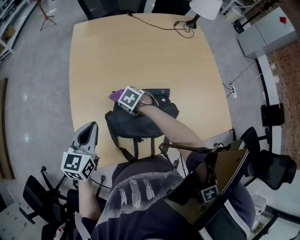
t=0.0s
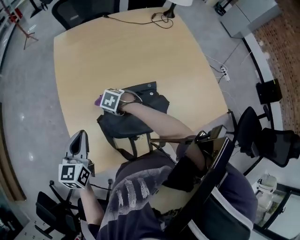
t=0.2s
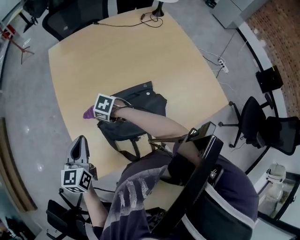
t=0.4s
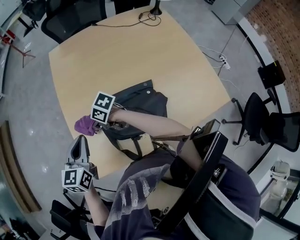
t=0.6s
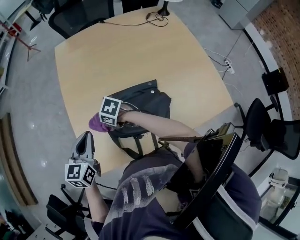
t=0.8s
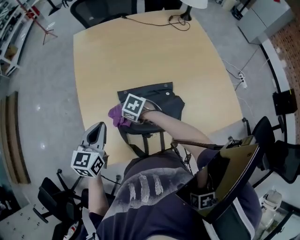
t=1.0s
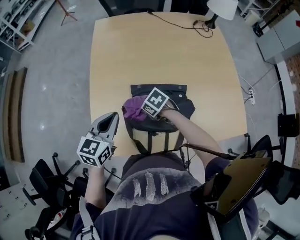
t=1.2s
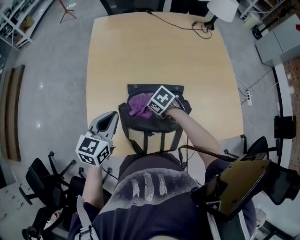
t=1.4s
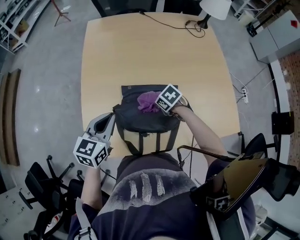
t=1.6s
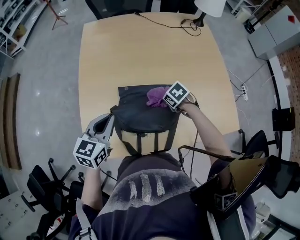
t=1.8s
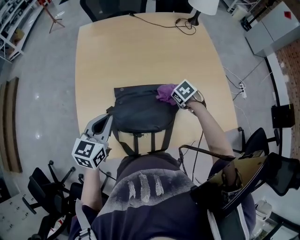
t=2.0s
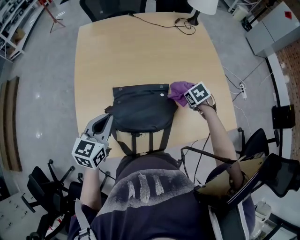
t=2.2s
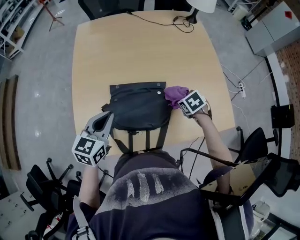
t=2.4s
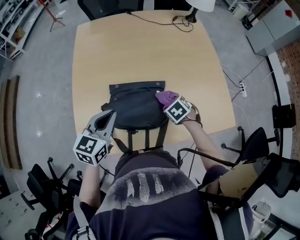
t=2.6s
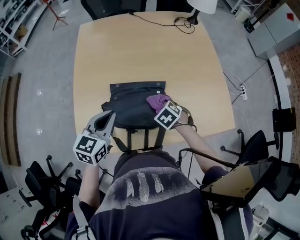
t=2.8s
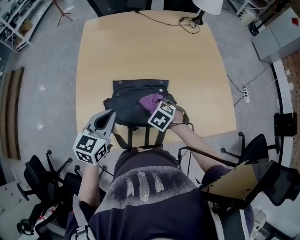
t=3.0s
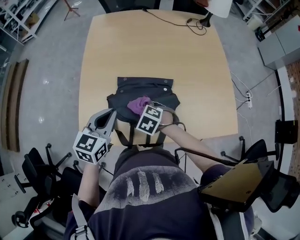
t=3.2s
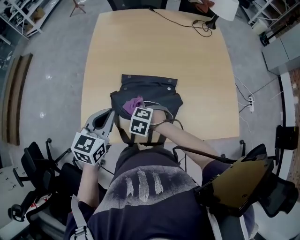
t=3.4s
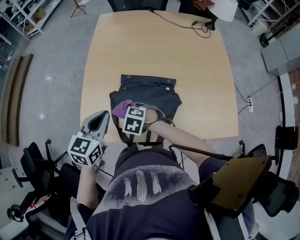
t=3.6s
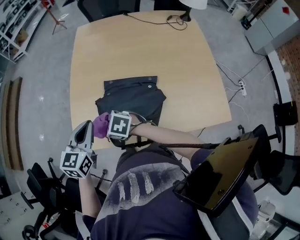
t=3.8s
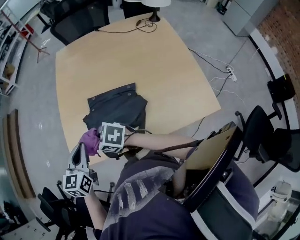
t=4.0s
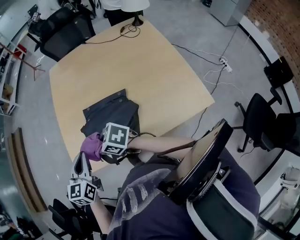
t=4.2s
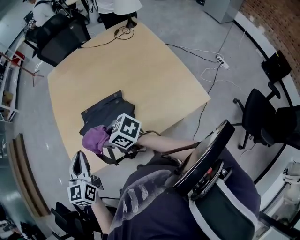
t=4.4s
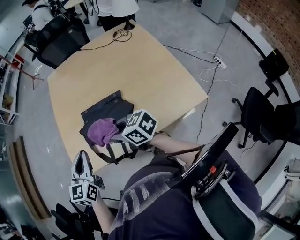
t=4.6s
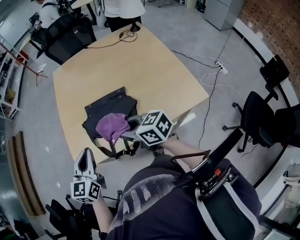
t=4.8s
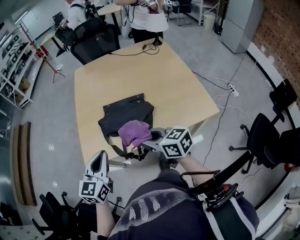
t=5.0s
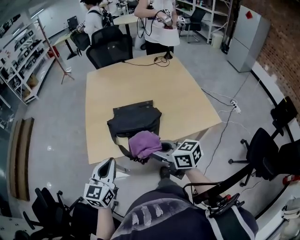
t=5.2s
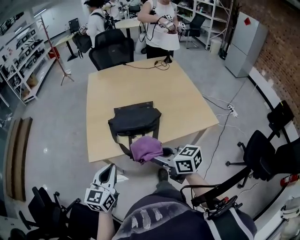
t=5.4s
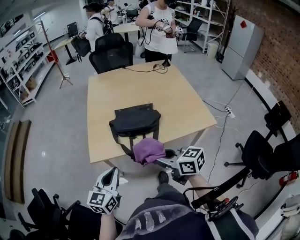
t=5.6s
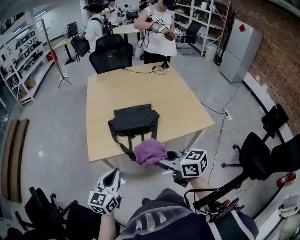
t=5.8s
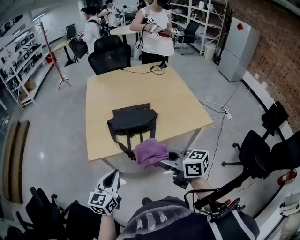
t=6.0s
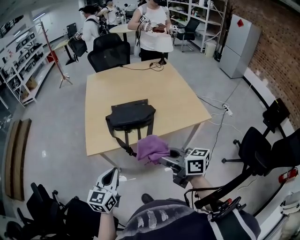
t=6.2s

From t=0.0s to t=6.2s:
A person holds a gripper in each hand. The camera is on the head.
From t=0.0s to t=1.6s: The left gripper shifts by about 5 cm, while the right gripper is displaced backward and to the right by about 15 cm.
From t=1.6s to t=3.2s: The right gripper swivels some 30 degrees, while the left gripper shifts by about 5 cm.
From t=3.2s to t=4.6s: The left gripper shifts by approximately 10 cm; the right gripper moves upward, some 20 cm, and points its fingers approximately 50 degrees further upward.
From t=4.6s to t=6.2s: The left gripper shifts roughly 30 cm backward and to the left. The right gripper goes some 30 cm backward, and rotates some 20 degrees.

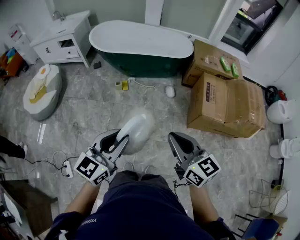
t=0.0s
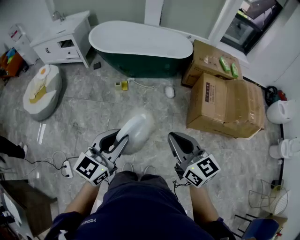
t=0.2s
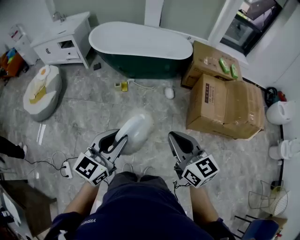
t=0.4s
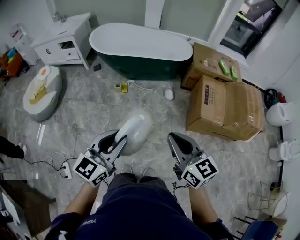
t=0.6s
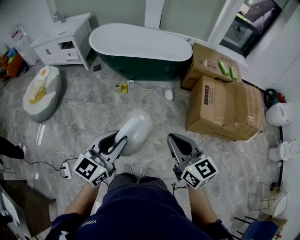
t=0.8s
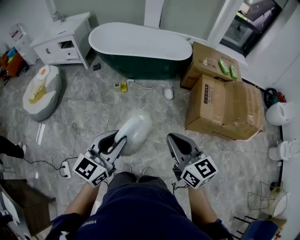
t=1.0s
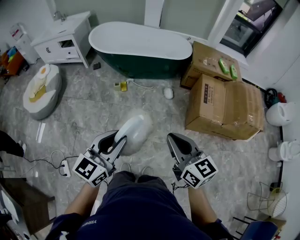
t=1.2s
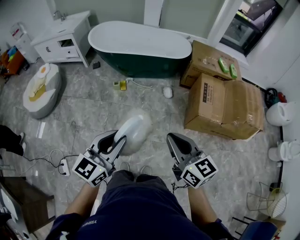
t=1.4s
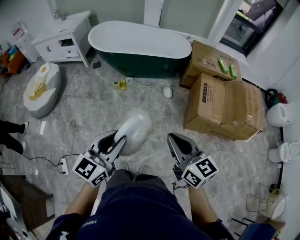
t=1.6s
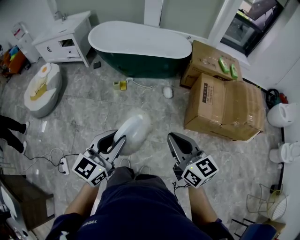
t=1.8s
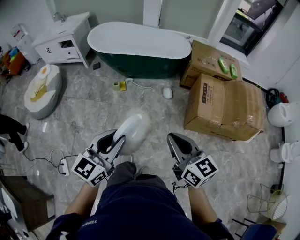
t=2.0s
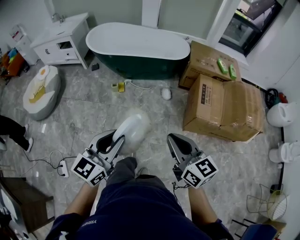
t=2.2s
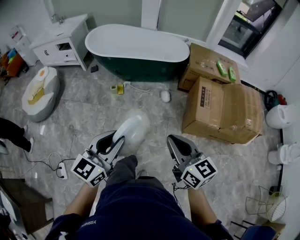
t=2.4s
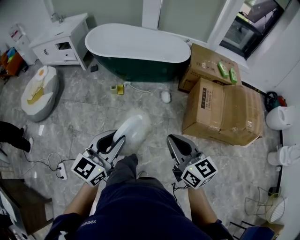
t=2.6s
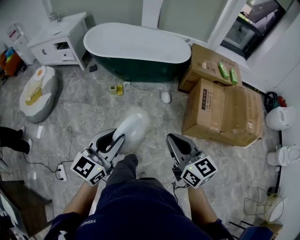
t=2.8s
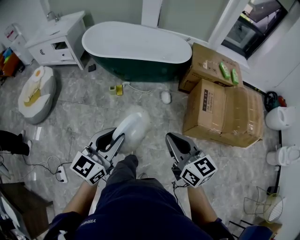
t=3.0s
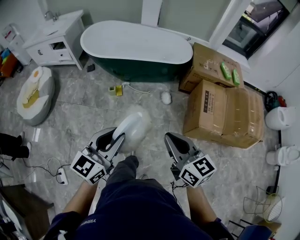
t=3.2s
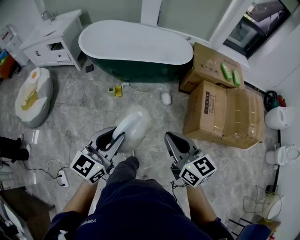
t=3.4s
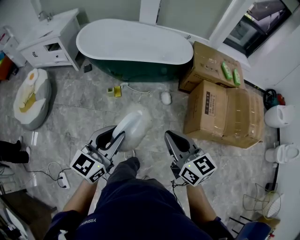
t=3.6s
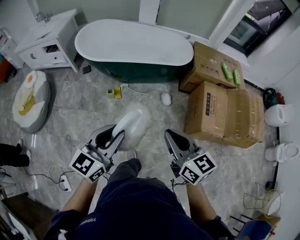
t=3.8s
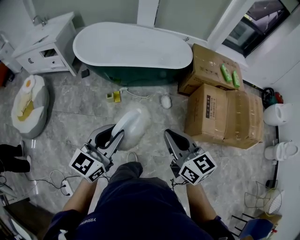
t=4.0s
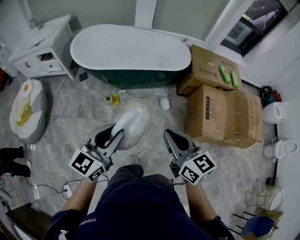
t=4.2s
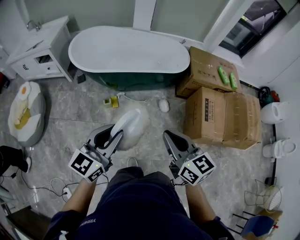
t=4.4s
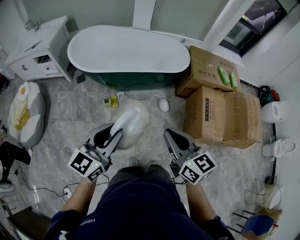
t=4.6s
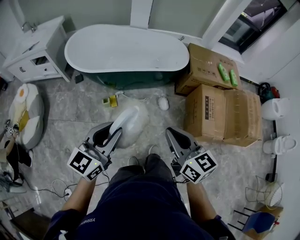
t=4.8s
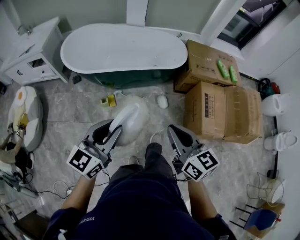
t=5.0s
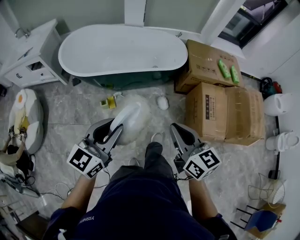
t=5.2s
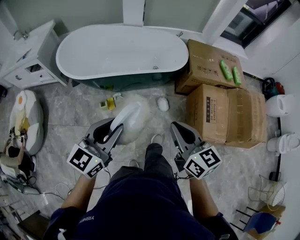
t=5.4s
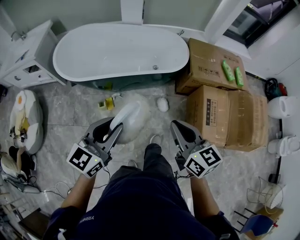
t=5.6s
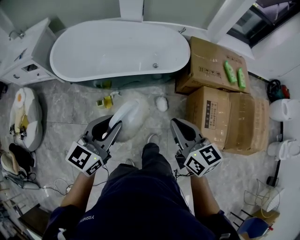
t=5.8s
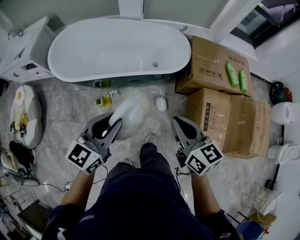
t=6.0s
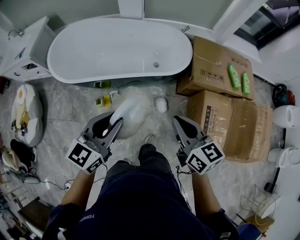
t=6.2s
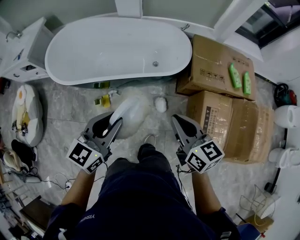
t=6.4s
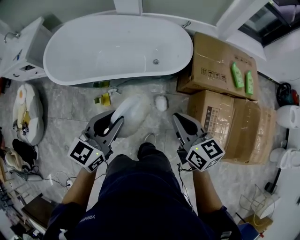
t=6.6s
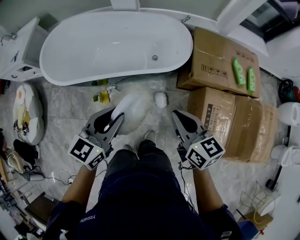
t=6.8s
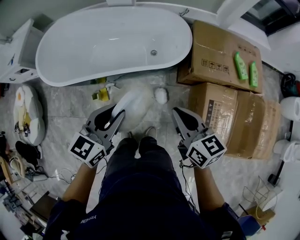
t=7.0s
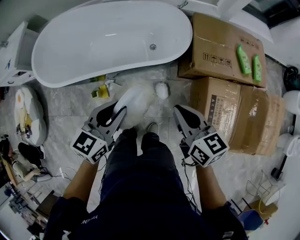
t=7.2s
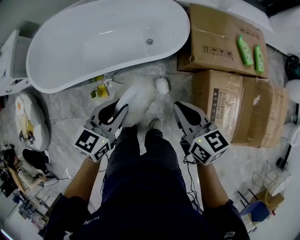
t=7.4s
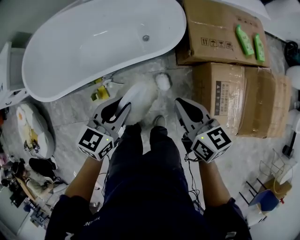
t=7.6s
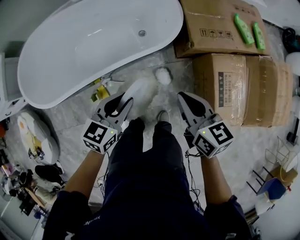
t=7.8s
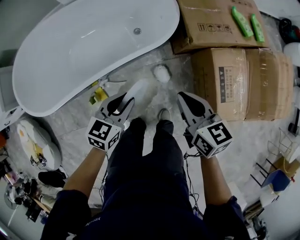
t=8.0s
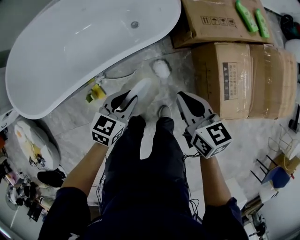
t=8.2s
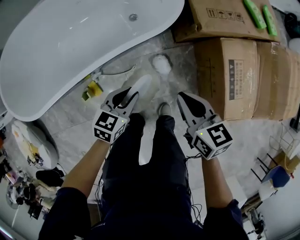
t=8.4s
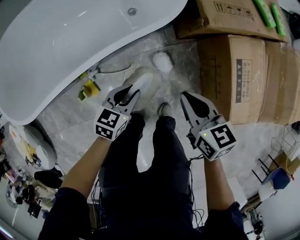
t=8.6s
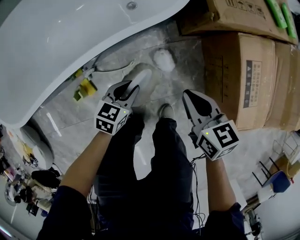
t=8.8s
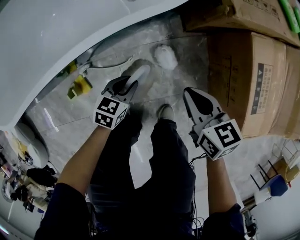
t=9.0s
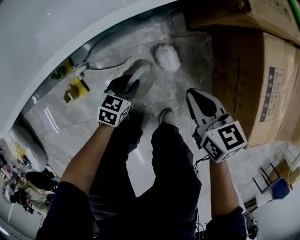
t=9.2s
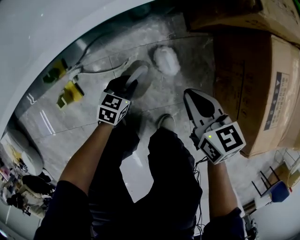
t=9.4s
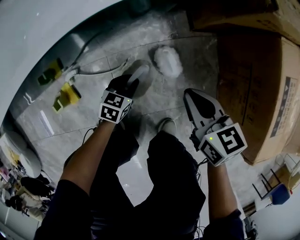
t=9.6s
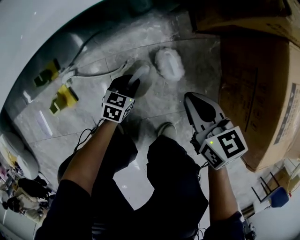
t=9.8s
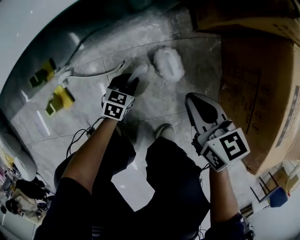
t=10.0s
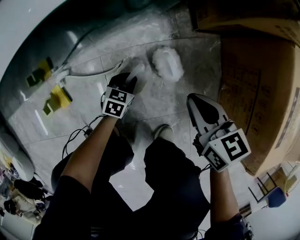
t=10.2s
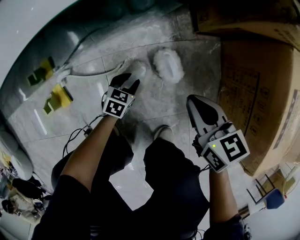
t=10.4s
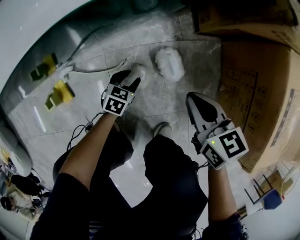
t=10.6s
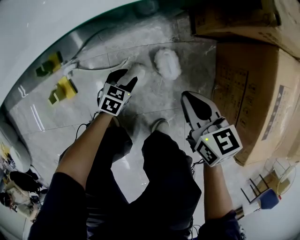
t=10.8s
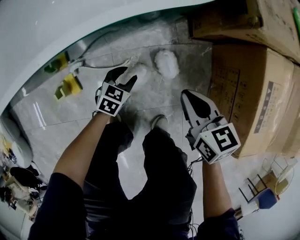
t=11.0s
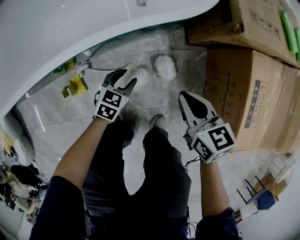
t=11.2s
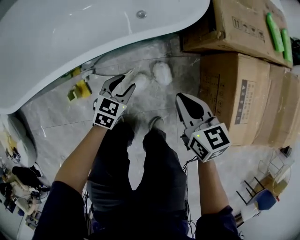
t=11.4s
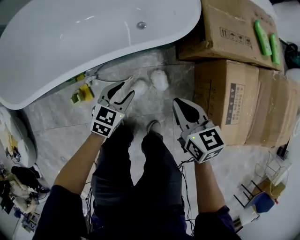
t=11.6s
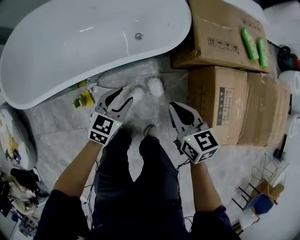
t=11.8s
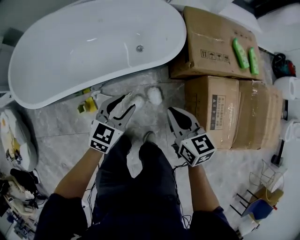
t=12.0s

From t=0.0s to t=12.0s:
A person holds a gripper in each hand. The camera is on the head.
From t=0.0s to t=1.6s: The right gripper is displaced to the right by about 5 cm.
From t=1.6s to t=3.0s: Both grippers move forward, approximately 10 cm.
From t=3.0s to t=4.4s: The two grippers go roughly 25 cm forward and to the left.
From t=4.4s to t=6.0s: Both grippers move forward and to the right, about 30 cm.
From t=6.0s to t=7.6s: The two grippers go some 25 cm forward, downward and to the right. The left gripper rotates some 20 degrees.
From t=7.6s to t=9.0s: Both grippers move downward, approximately 40 cm. The left gripper swivels some 20 degrees.
From t=9.0s to t=10.4s: The right gripper travels downward by approximately 20 cm, while the left gripper shifts about 30 cm downward.
From t=10.4s to t=12.0s: The two grippers go about 50 cm upward. The left gripper turns by approximately 30 degrees.

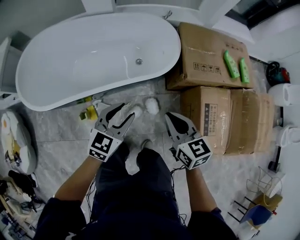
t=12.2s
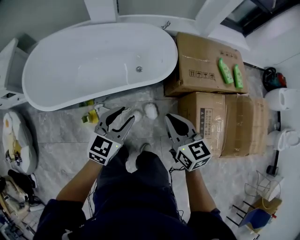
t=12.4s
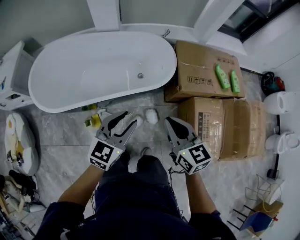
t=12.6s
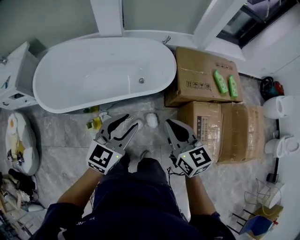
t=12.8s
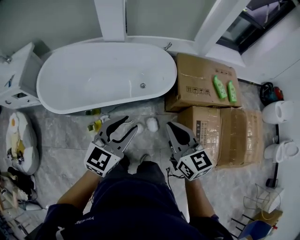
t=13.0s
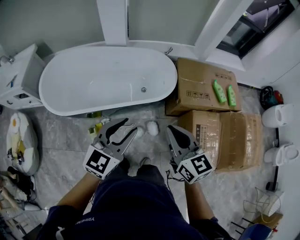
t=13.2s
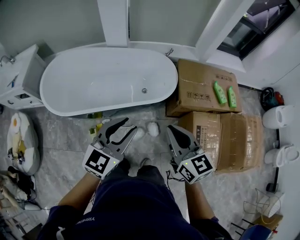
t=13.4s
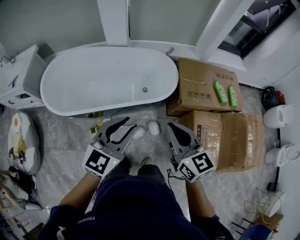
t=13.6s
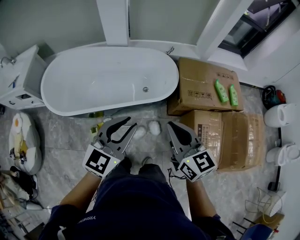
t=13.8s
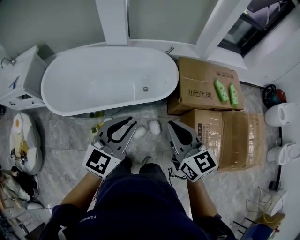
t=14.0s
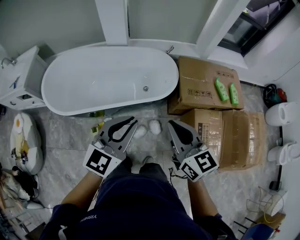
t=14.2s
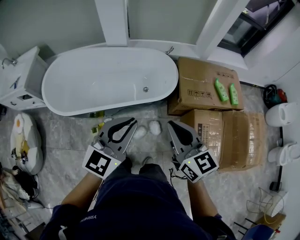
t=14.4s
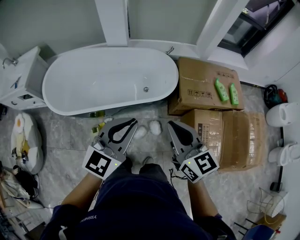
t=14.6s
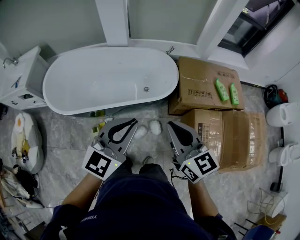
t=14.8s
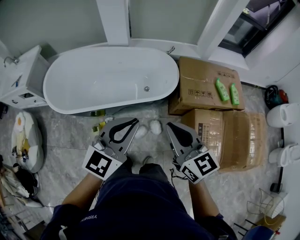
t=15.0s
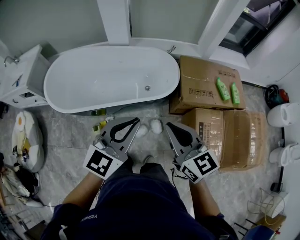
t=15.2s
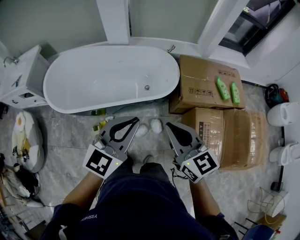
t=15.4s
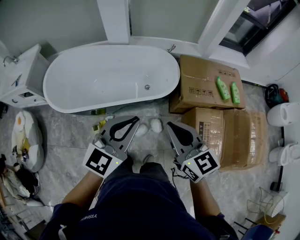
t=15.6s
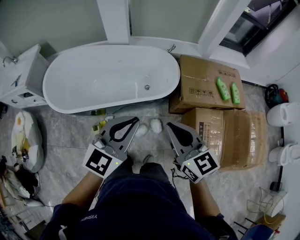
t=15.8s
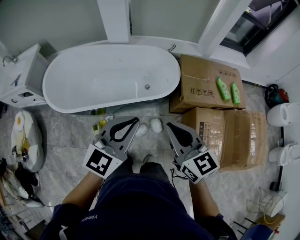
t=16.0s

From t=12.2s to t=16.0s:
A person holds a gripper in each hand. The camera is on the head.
From t=12.2s to t=13.4s: The two grippers go approximately 25 cm upward.
From t=13.4s to t=14.8s: The left gripper closes.
From t=14.8s to t=16.0s: The grippers make only small movements.

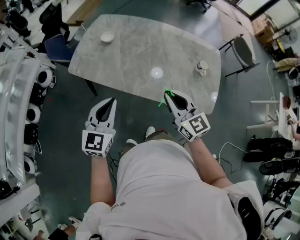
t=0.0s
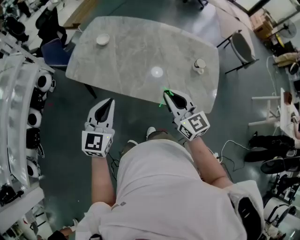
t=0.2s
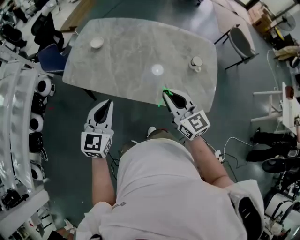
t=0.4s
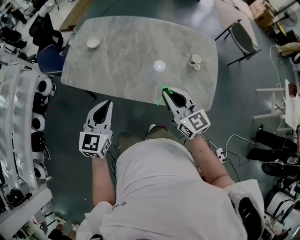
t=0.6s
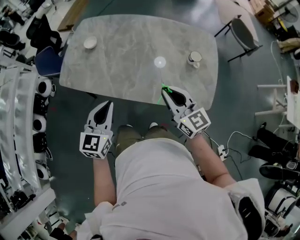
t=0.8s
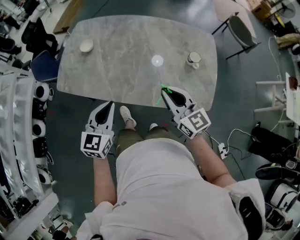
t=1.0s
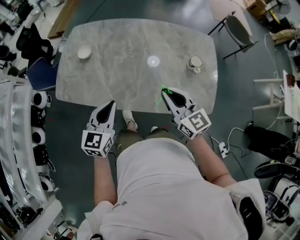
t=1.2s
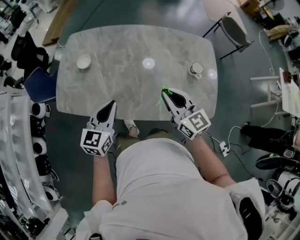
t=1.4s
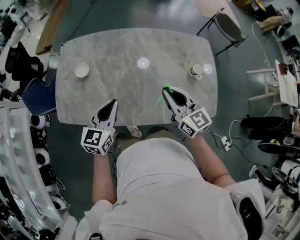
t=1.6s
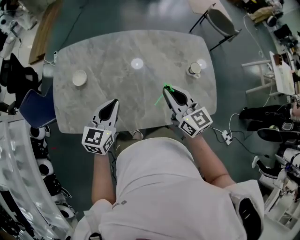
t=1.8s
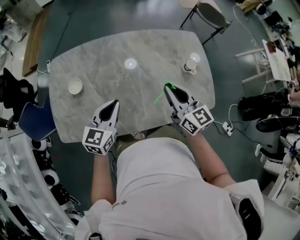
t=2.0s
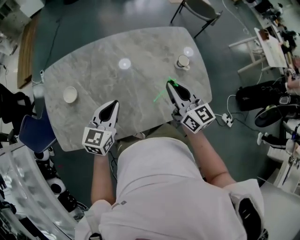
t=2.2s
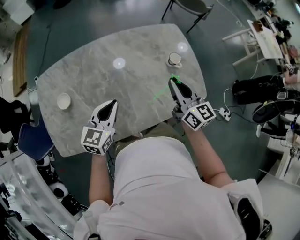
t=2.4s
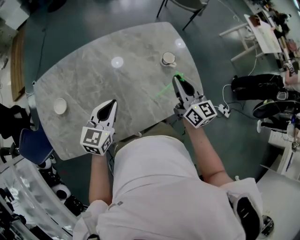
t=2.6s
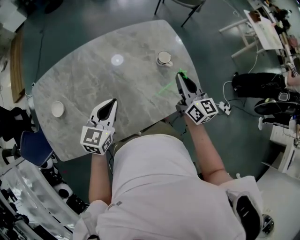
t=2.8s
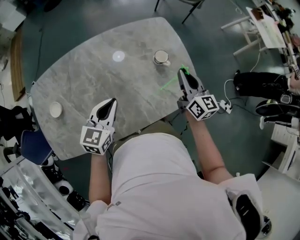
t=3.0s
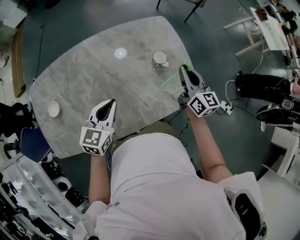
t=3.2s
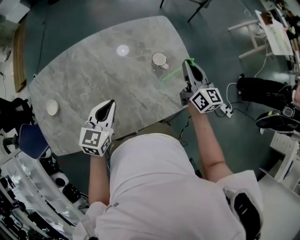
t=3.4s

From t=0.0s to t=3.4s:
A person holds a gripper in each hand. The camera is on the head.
From t=0.0s to t=1.6s: Both grippers move forward, some 20 cm. The left gripper turns by some 20 degrees.
From t=1.6s to t=3.4s: The right gripper ends up some 35 cm from where it was, and changes its angle by approximately 40 degrees. Meanwhile the left gripper shifts by roughly 20 cm, and changes its angle by roughly 20 degrees.
